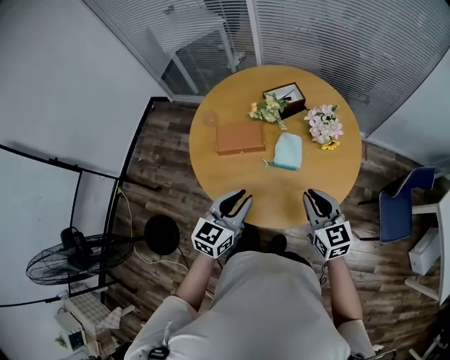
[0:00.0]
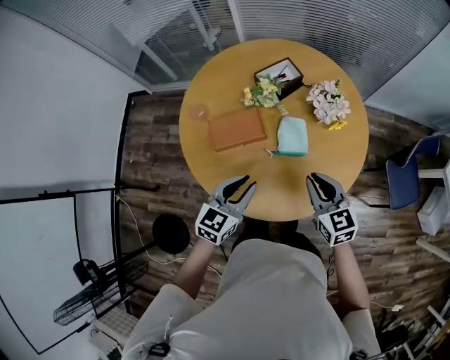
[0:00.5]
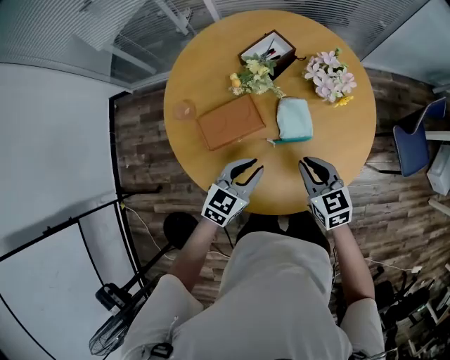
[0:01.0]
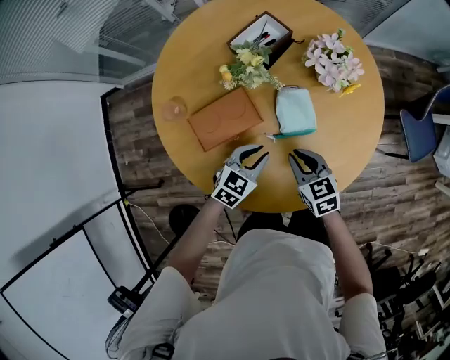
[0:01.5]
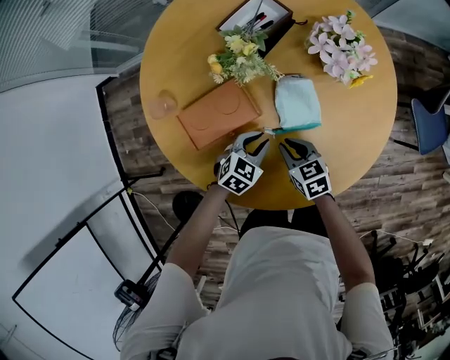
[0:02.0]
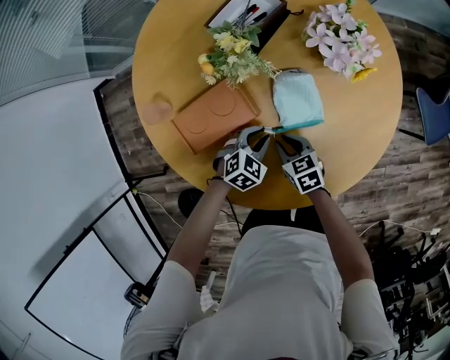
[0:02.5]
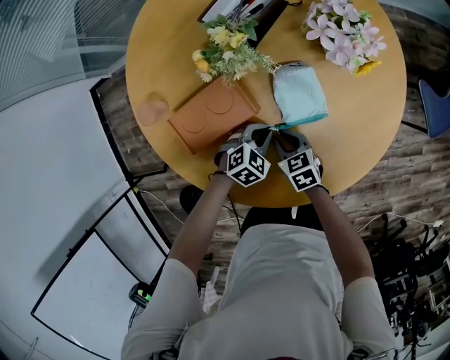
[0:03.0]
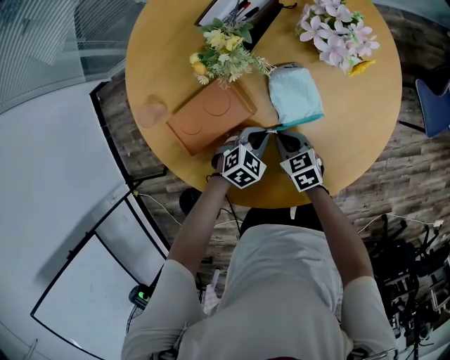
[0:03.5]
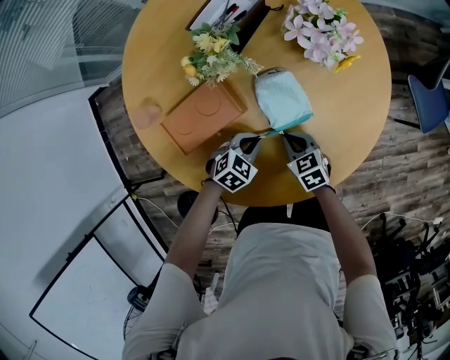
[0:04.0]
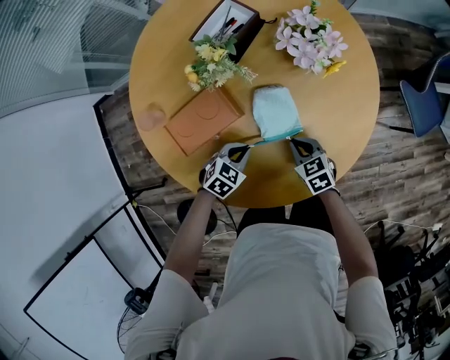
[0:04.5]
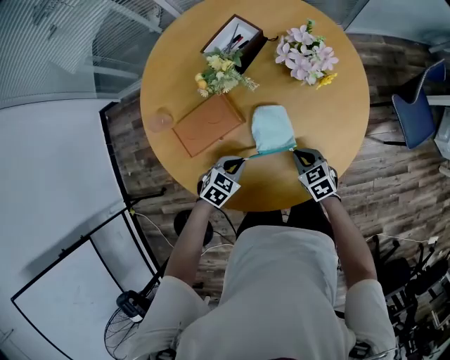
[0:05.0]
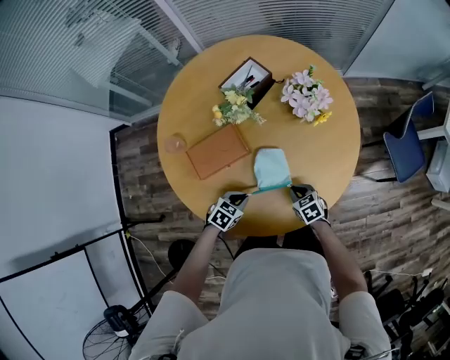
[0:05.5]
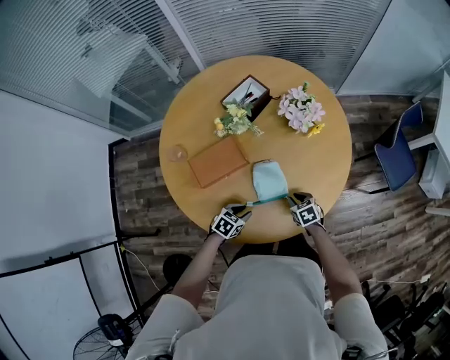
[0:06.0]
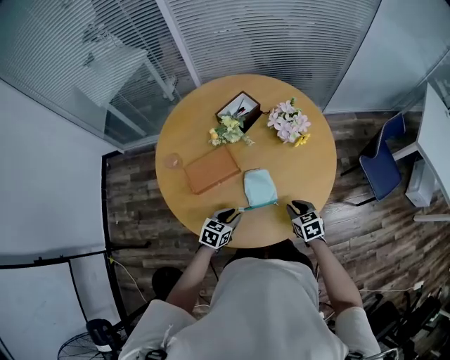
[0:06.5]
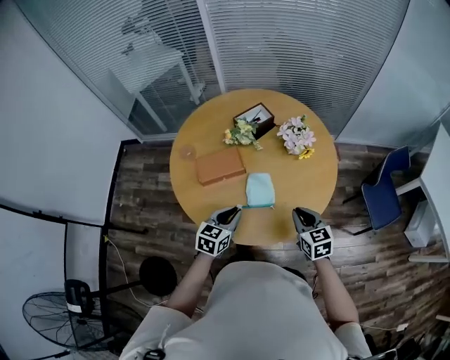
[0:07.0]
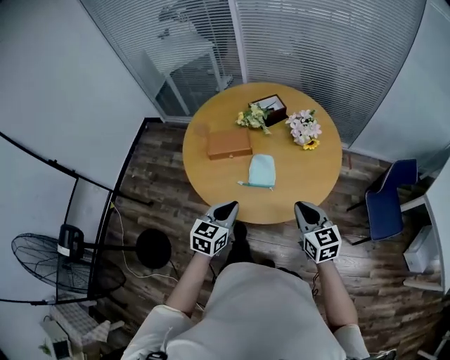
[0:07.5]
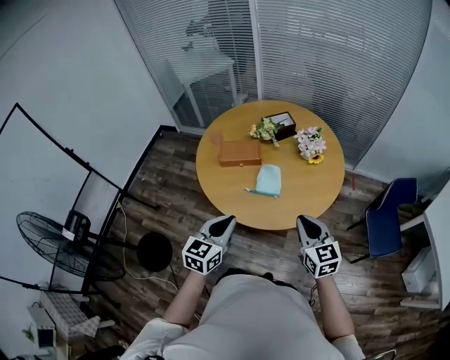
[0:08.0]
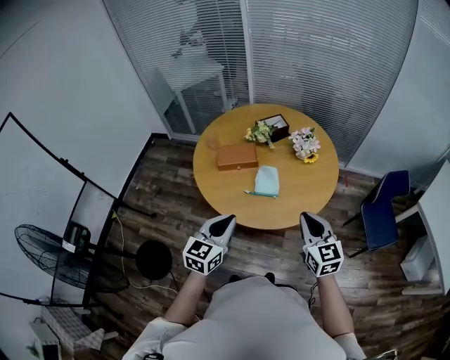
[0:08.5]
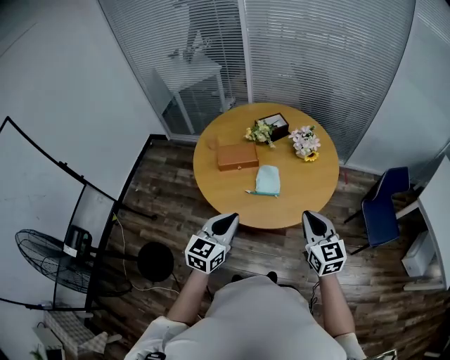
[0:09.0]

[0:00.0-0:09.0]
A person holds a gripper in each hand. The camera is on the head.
0:00.0 to 0:02.0: The left gripper travels downward and forward by roughly 40 cm, and points its fingers some 30 degrees further downward. Meanwhile the right gripper goes roughly 35 cm downward and to the left, and turns by roughly 30 degrees.
0:02.0 to 0:04.5: The right gripper heads to the right, covering approximately 10 cm.
0:04.5 to 0:07.0: The two grippers go approximately 30 cm upward and backward. The left gripper swivels some 50 degrees; the right gripper turns by approximately 20 degrees.
0:07.0 to 0:09.0: The grippers both shift backward and upward by about 25 cm. The right gripper swivels roughly 20 degrees. Meanwhile the left gripper rotates roughly 20 degrees.

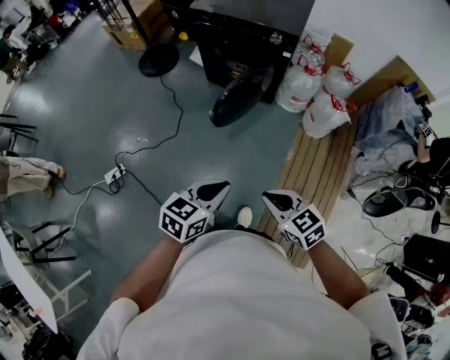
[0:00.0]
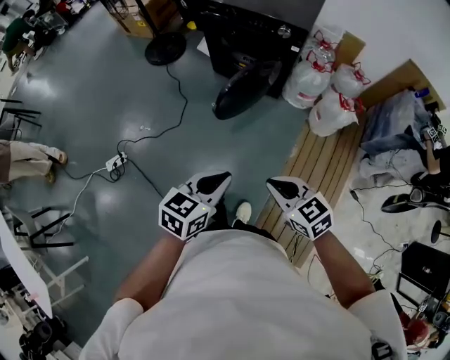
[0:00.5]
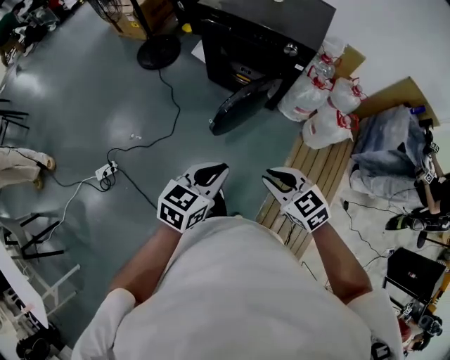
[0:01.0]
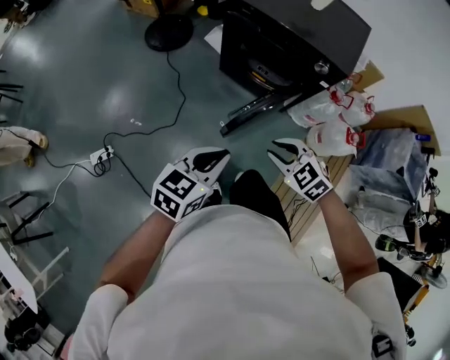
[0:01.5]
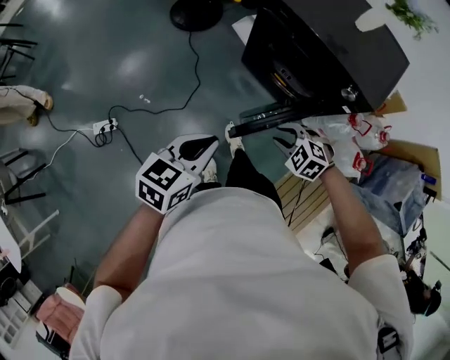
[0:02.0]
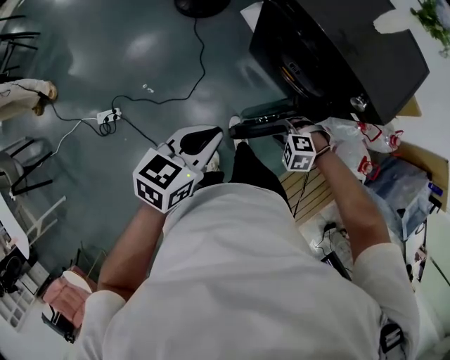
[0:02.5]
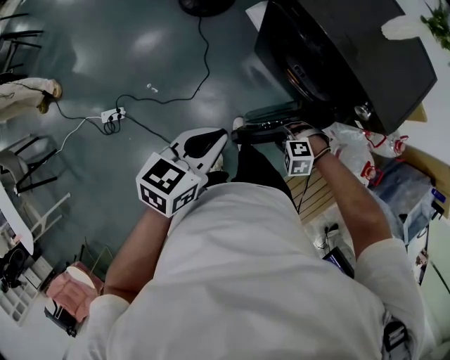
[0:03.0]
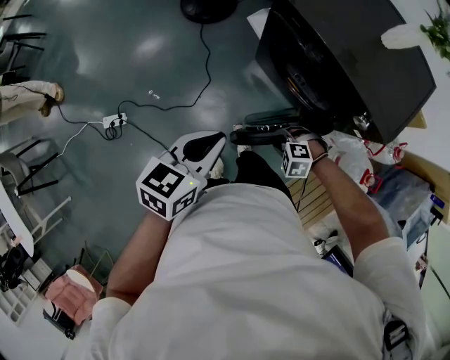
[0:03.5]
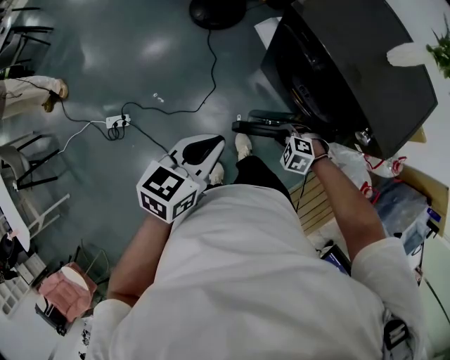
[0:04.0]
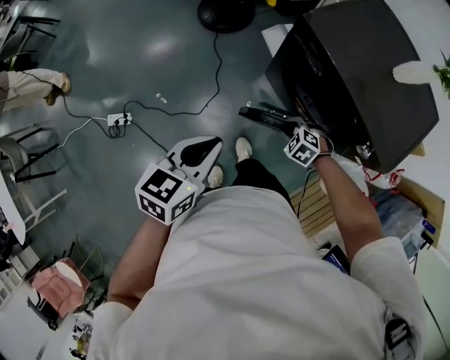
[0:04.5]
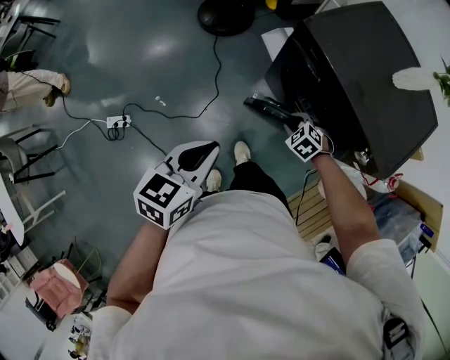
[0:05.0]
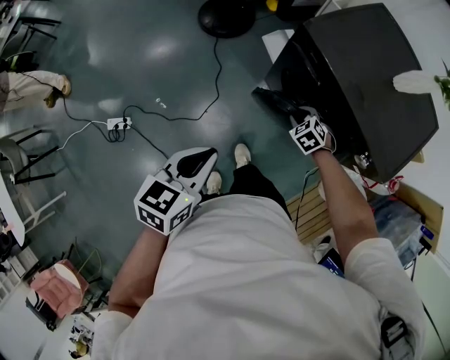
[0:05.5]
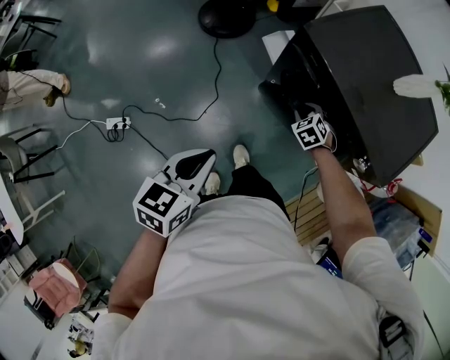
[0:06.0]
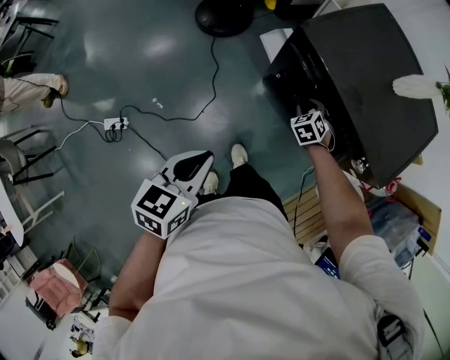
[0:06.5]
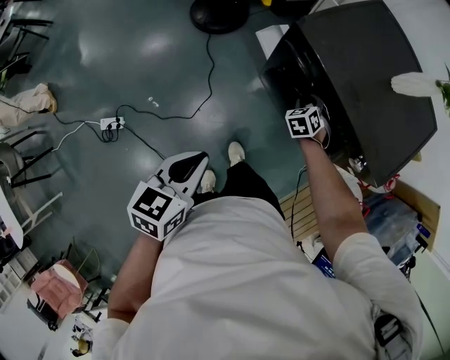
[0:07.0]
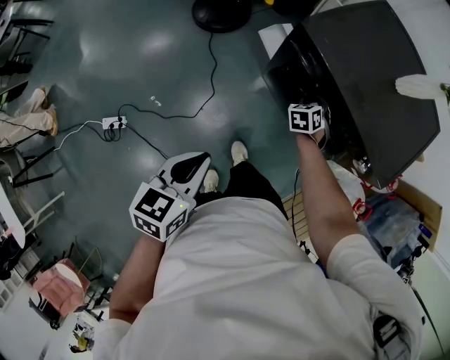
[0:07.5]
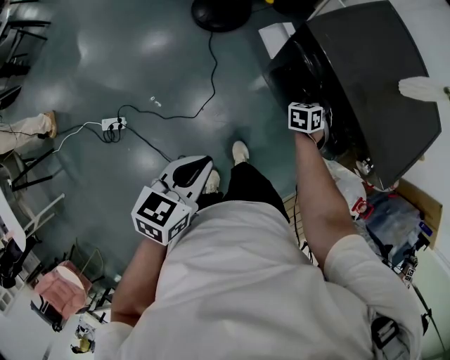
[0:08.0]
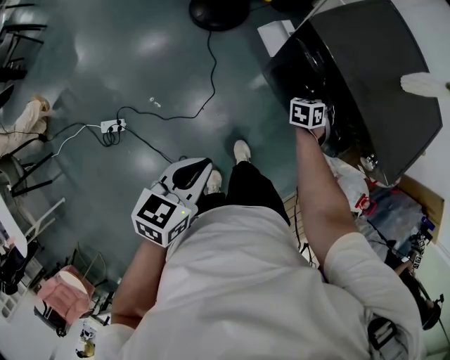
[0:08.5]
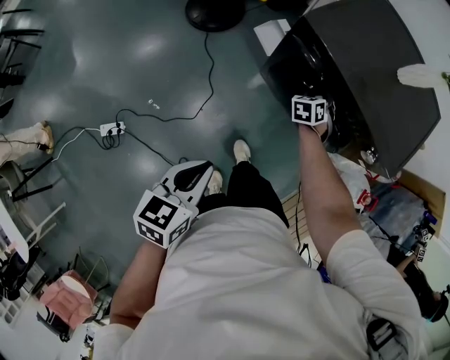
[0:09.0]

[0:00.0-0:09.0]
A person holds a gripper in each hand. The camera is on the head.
0:00.0 to 0:02.0: Both grippers move forward, about 40 cm. The left gripper turns by about 20 degrees, while the right gripper rotates around the line of its fingers by approximately 50 degrees, counterclockwise from behind, and opens up.
0:02.0 to 0:04.5: The right gripper shifts by some 20 cm. Meanwhile the left gripper ends up some 15 cm from where it was.
0:04.5 to 0:07.0: The right gripper shifts by roughly 20 cm, and rotates roughly 50 degrees.
0:07.0 to 0:09.0: The right gripper turns by approximately 20 degrees.

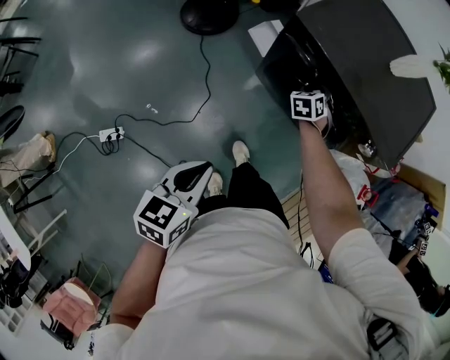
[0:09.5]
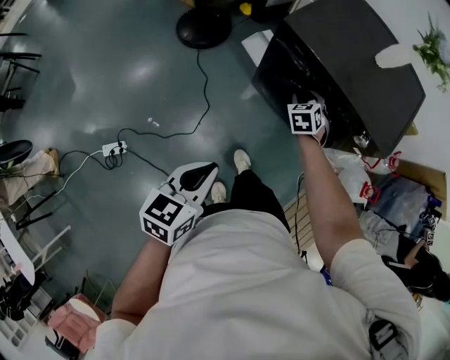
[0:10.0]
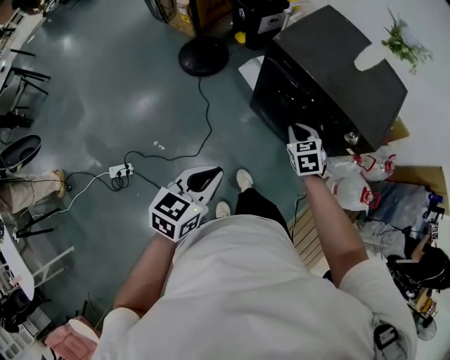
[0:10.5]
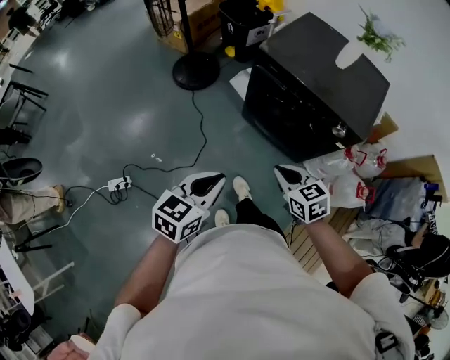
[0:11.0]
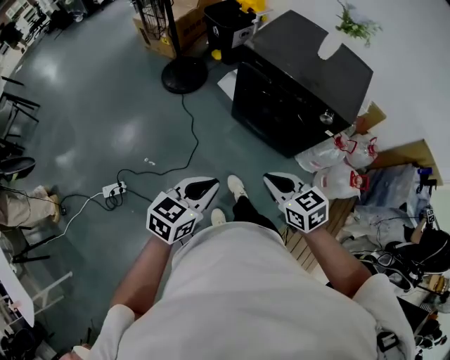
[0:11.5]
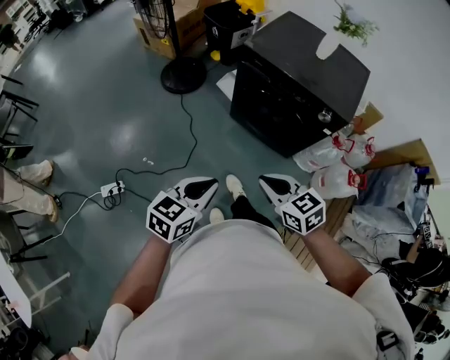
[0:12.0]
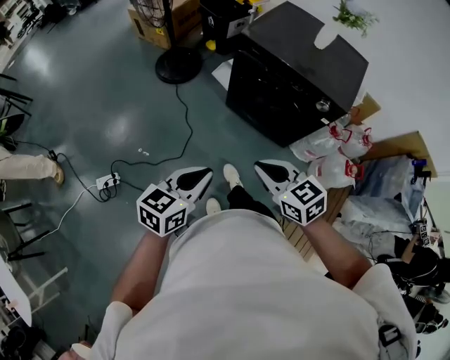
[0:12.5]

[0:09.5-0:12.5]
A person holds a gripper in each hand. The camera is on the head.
0:09.5 to 0:11.0: The right gripper heads backward and upward, covering approximately 40 cm, rotates some 40 degrees, and closes up. Meanwhile the left gripper goes about 10 cm backward and upward.
0:11.0 to 0:12.5: The left gripper goes approximately 5 cm backward; the right gripper shifts some 10 cm backward and upward.

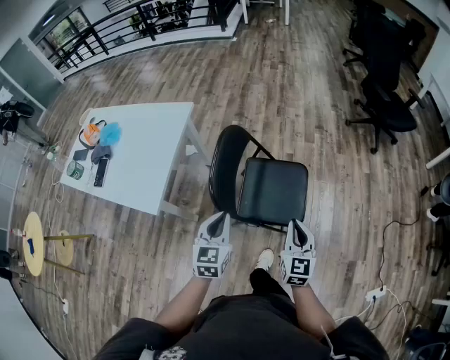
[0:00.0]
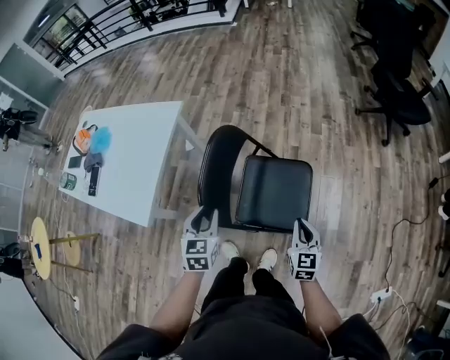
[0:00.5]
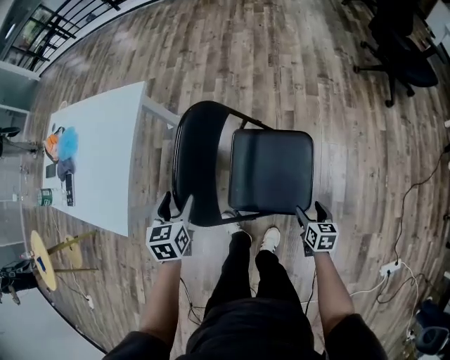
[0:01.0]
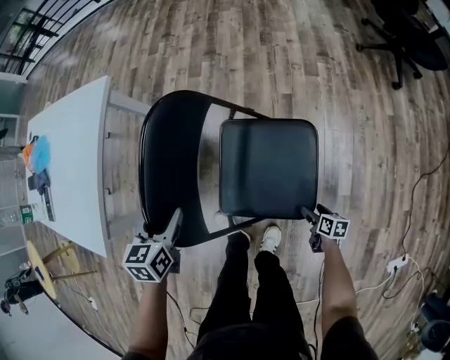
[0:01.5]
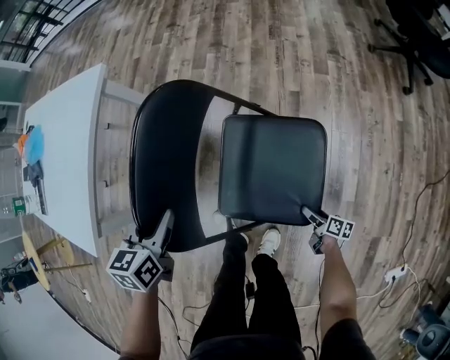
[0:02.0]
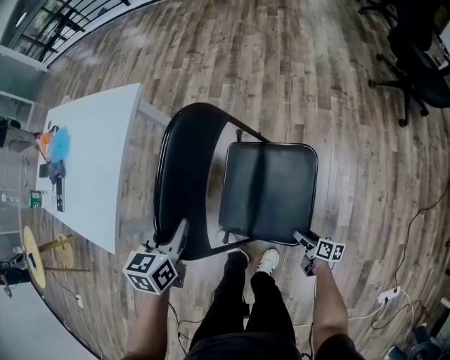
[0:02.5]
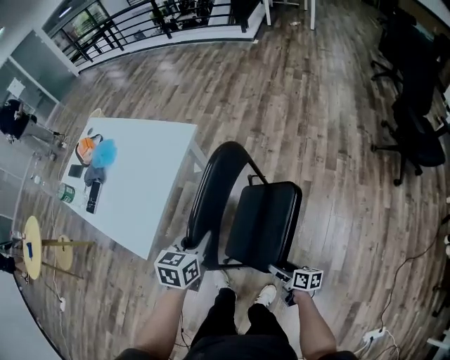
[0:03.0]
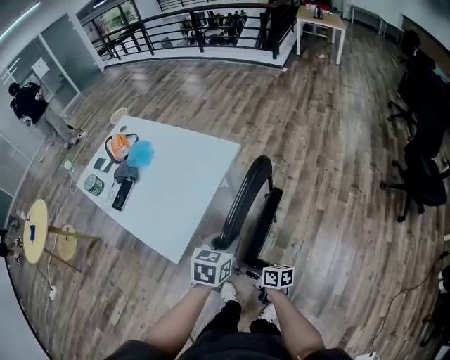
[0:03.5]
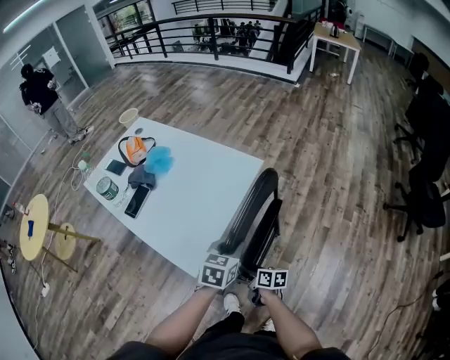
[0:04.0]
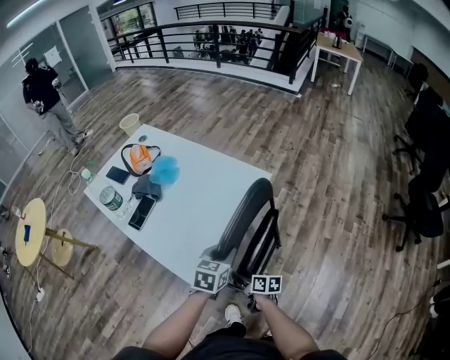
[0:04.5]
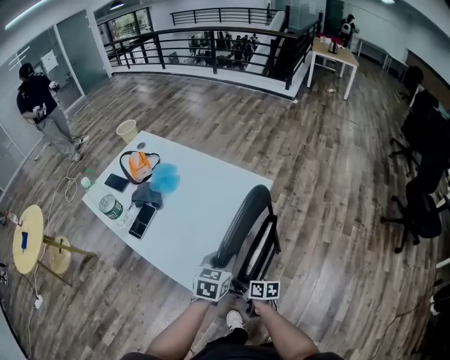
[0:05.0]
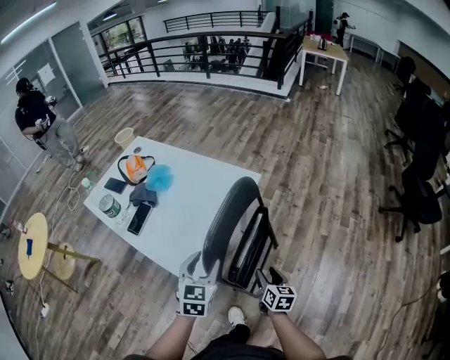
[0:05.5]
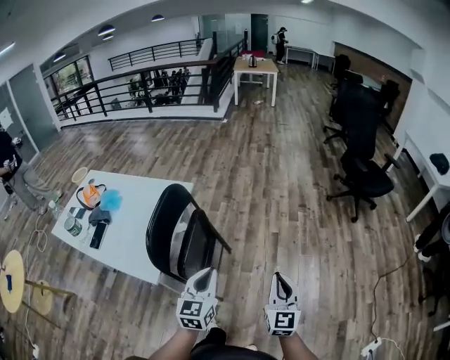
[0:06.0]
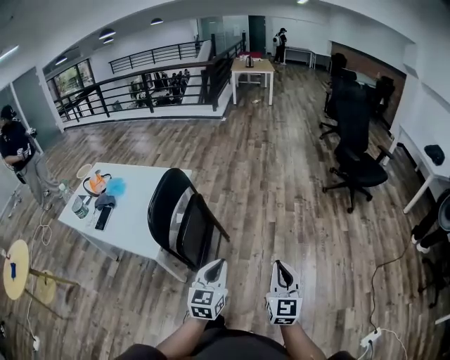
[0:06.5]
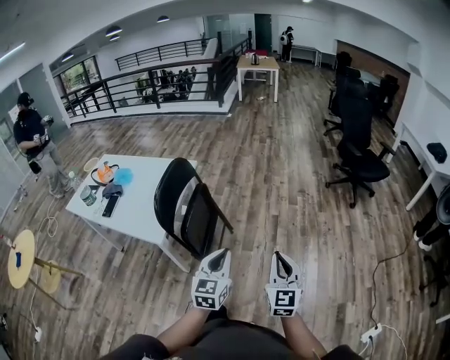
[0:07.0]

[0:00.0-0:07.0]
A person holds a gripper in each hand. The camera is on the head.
0:00.0 to 0:02.0: The left gripper is displaced downward and forward by approximately 30 cm, changes its angle by approximately 20 degrees, and opens its fingers. The right gripper is displaced downward by roughly 60 cm, rotates around the line of its fingers by roughly 60 degrees, clockwise from behind, and opens.
0:02.0 to 0:03.5: The left gripper shifts roughly 25 cm upward, while the right gripper moves to the left, upward and forward, approximately 60 cm, and changes its angle by approximately 40 degrees.
0:03.5 to 0:05.0: The two grippers go approximately 20 cm to the left and forward.
0:05.0 to 0:07.0: Both grippers are carried about 50 cm. The left gripper swivels some 30 degrees, and opens, then closes again; the right gripper swivels some 80 degrees, and closes up.
